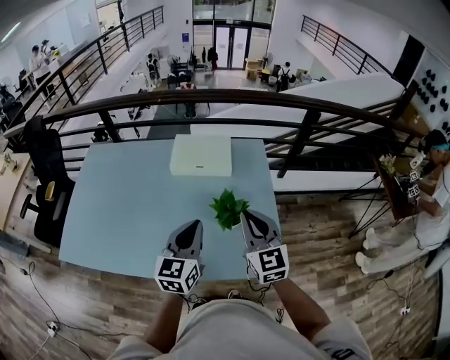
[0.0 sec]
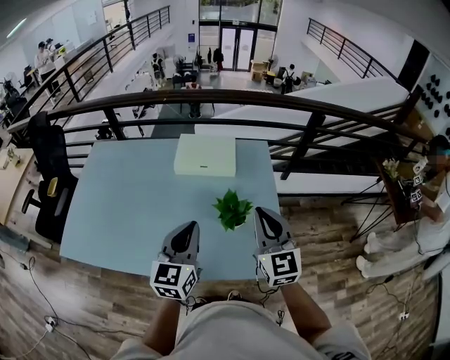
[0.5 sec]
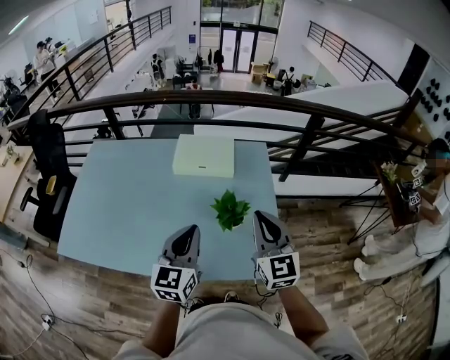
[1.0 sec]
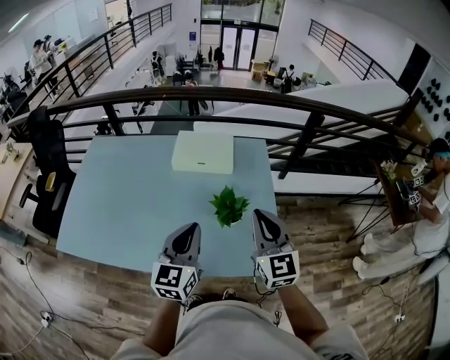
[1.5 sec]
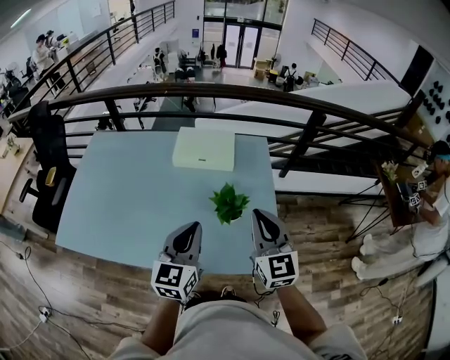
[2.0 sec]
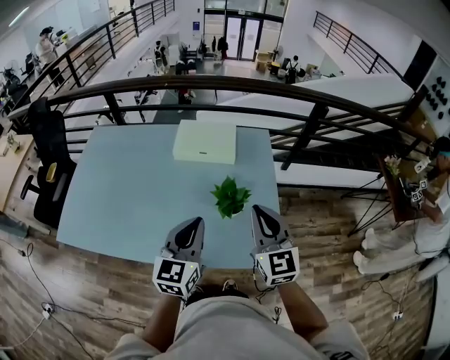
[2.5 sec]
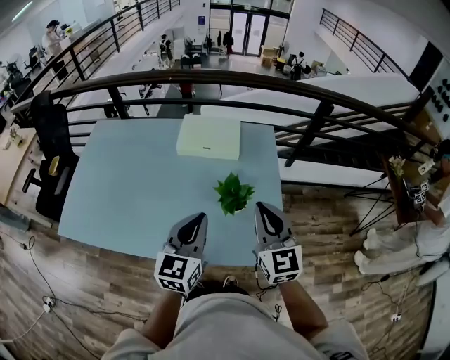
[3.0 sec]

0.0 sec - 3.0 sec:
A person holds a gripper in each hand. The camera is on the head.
0.0 sec - 3.0 sec: The grippers stay close to where they were, moving slightly.

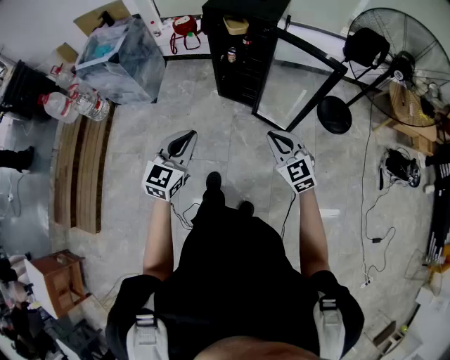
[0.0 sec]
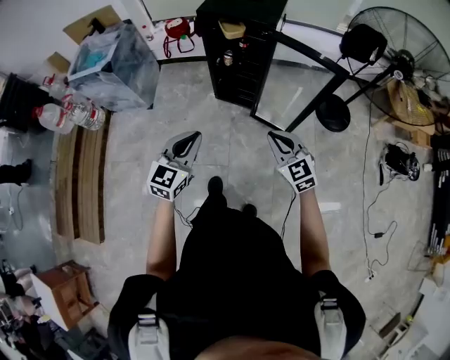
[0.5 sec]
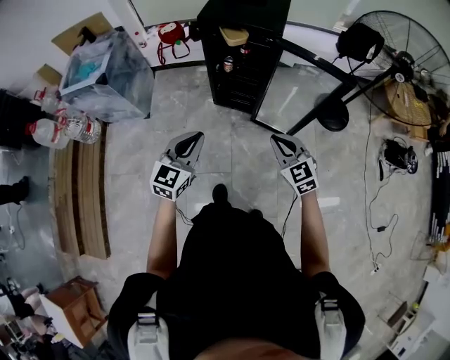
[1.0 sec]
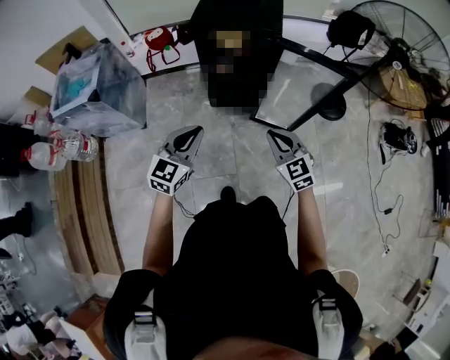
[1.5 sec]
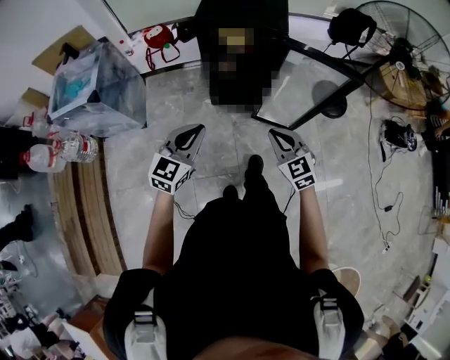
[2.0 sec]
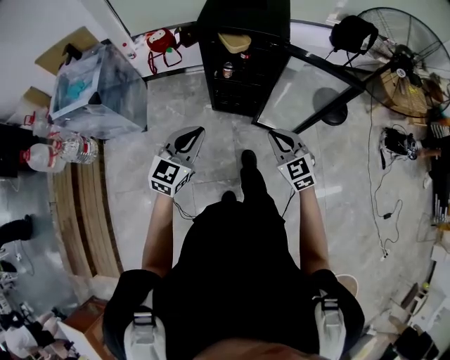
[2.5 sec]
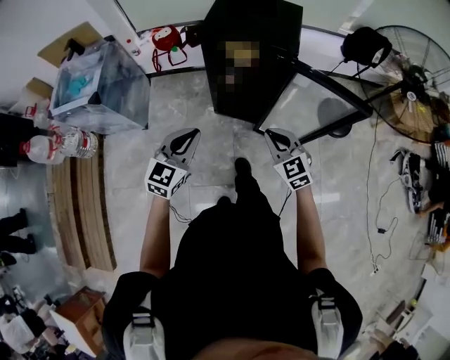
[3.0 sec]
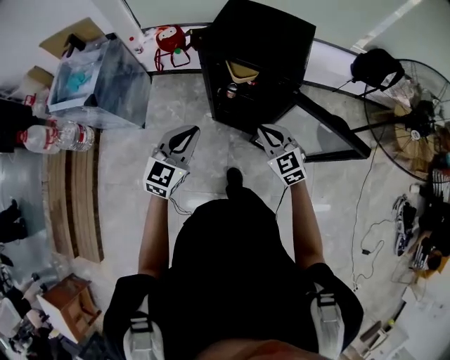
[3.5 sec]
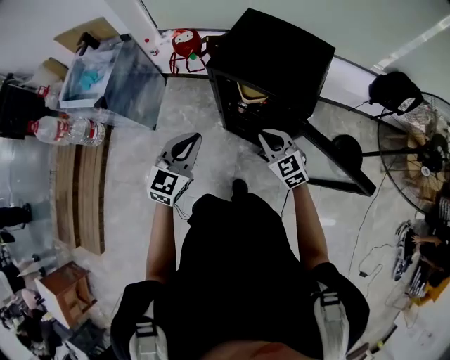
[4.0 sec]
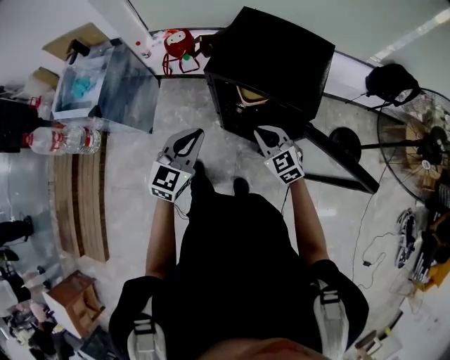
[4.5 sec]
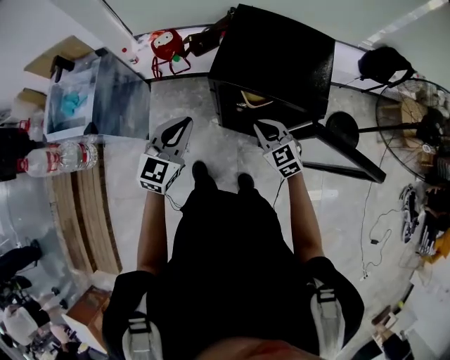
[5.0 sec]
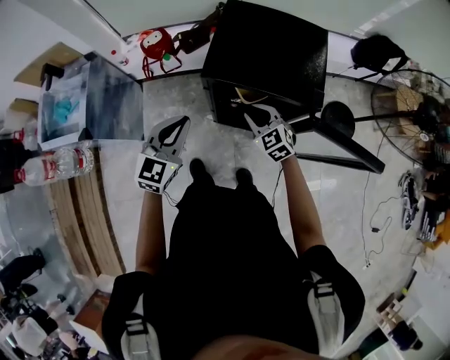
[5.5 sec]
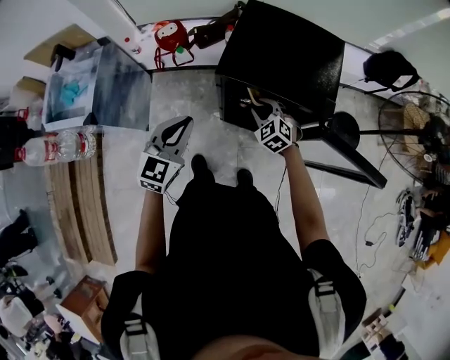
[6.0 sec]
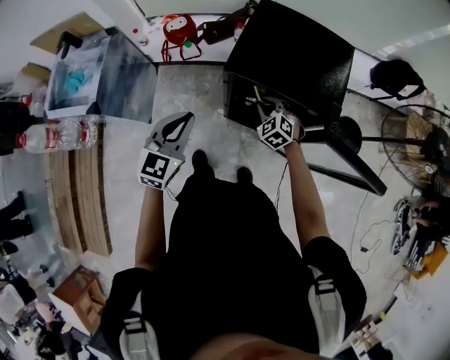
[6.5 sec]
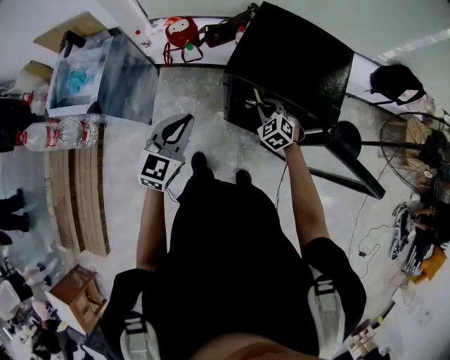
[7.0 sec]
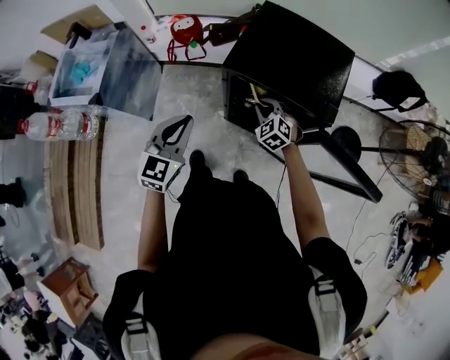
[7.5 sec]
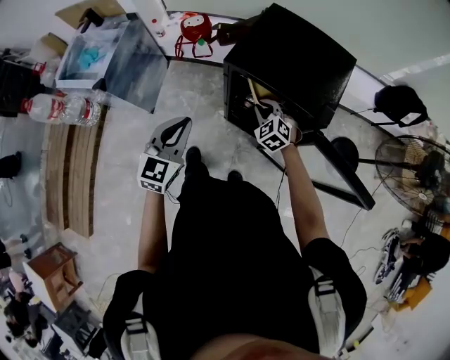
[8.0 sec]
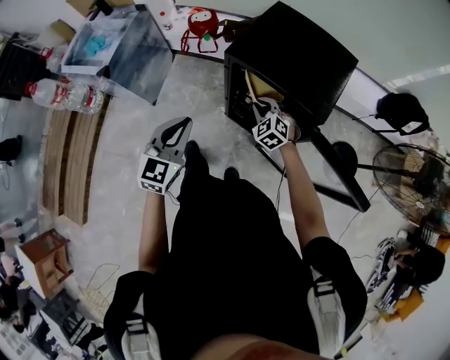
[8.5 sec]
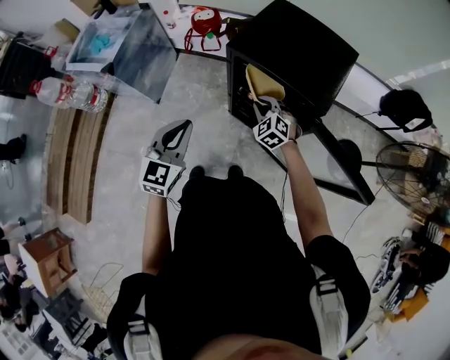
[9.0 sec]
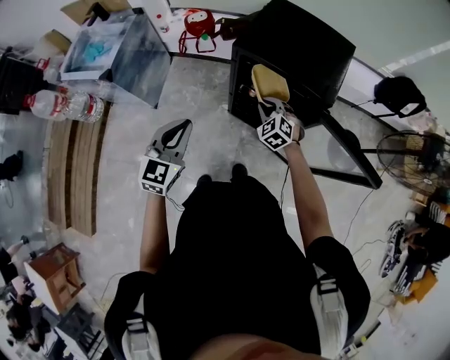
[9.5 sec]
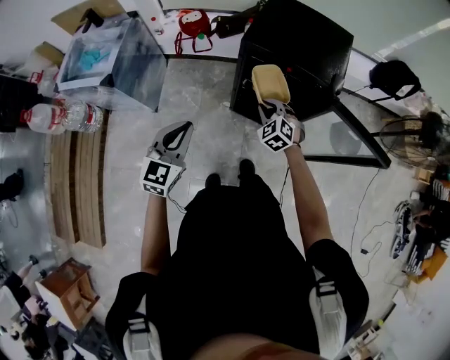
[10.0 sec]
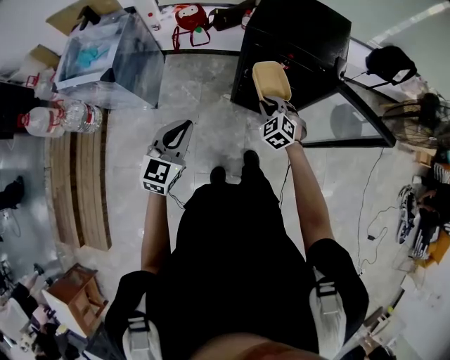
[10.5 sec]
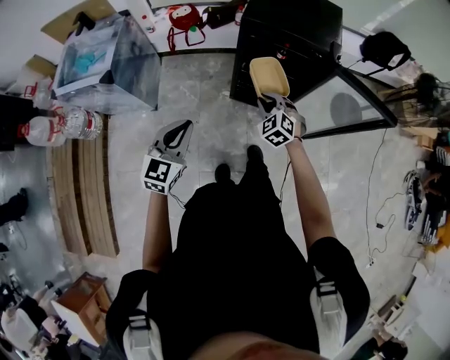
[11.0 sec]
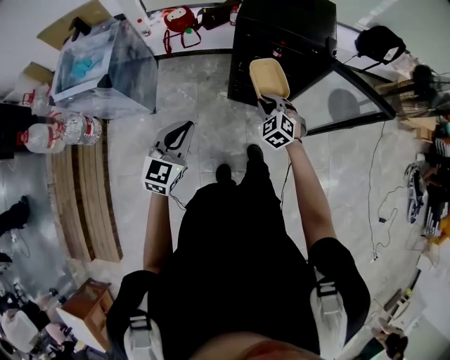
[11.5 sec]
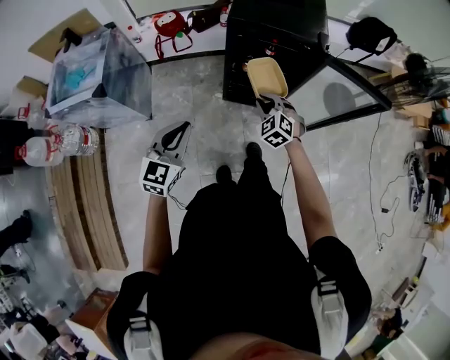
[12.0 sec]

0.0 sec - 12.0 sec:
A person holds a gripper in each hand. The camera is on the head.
0.0 sec - 2.0 sec: The two grippers go about 25 cm forward and to the left.
2.0 sec - 4.0 sec: The two grippers go roughly 30 cm forward. The left gripper changes its angle by approximately 20 degrees. Meanwhile the right gripper swivels roughly 20 degrees.
4.0 sec - 6.0 sec: The left gripper moves forward and to the left, roughly 15 cm, while the right gripper moves forward, downward and to the left, about 20 cm, rotates roughly 20 degrees, and opens up.
6.0 sec - 8.0 sec: The left gripper heads backward, covering some 5 cm.
8.0 sec - 10.0 sec: Both grippers move backward and to the left, approximately 15 cm.
10.0 sec - 12.0 sec: The two grippers go approximately 10 cm backward.

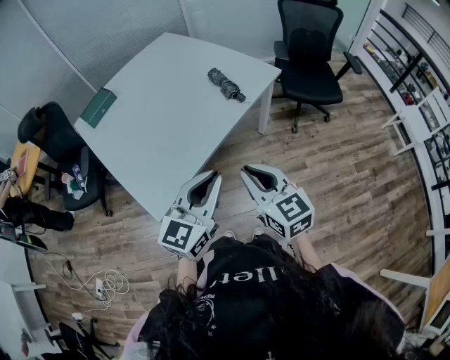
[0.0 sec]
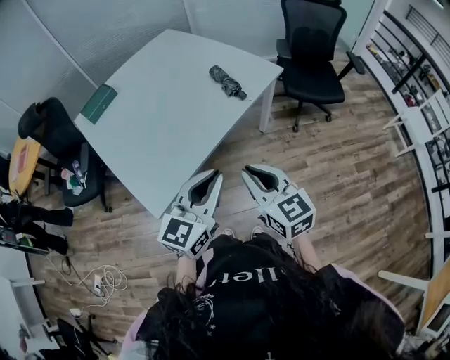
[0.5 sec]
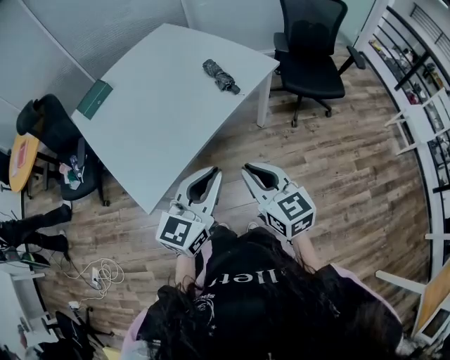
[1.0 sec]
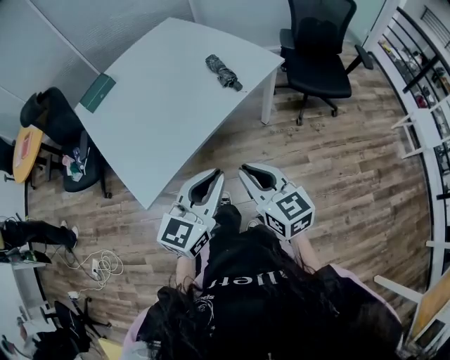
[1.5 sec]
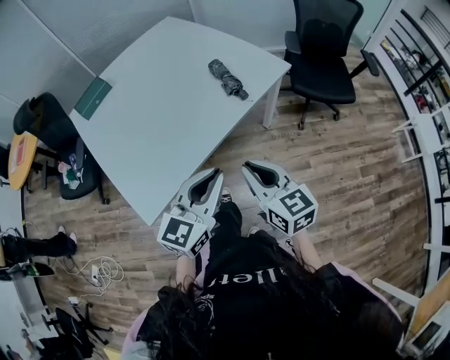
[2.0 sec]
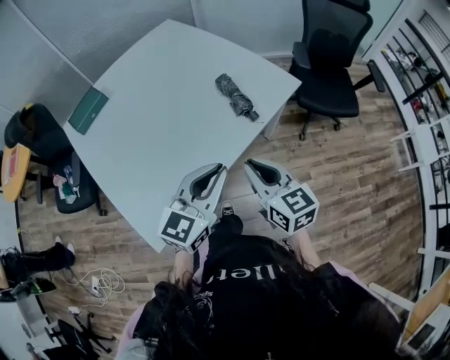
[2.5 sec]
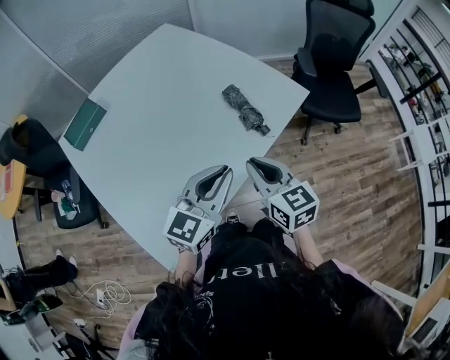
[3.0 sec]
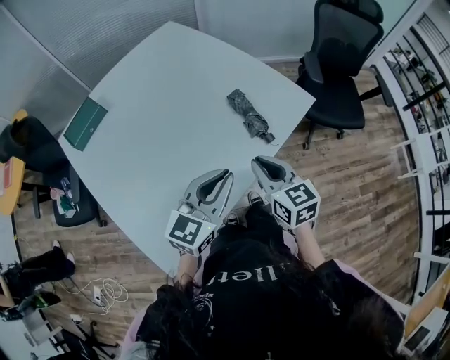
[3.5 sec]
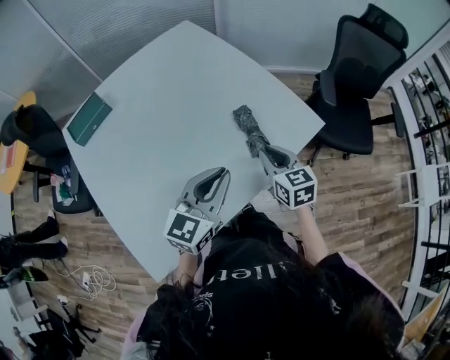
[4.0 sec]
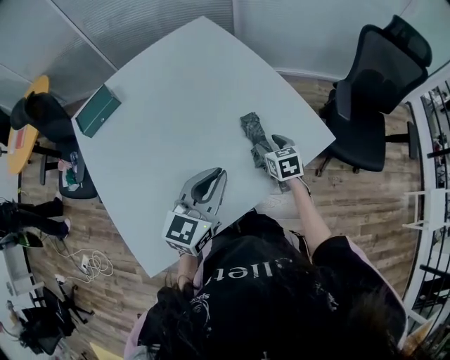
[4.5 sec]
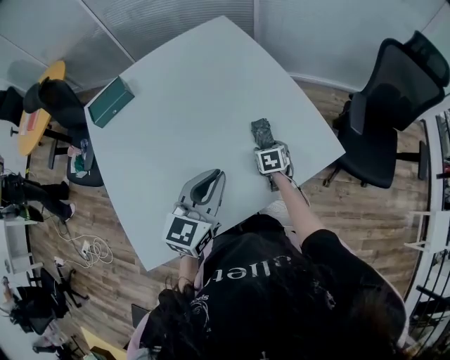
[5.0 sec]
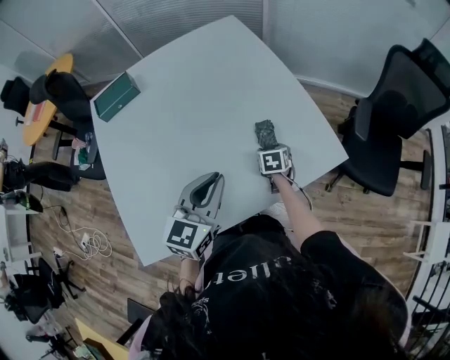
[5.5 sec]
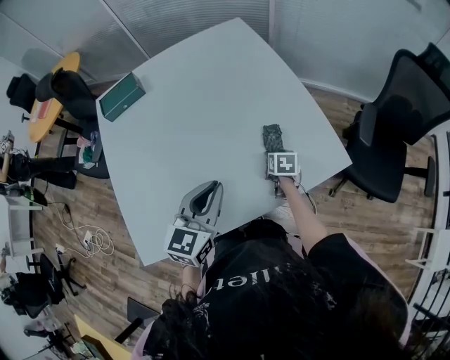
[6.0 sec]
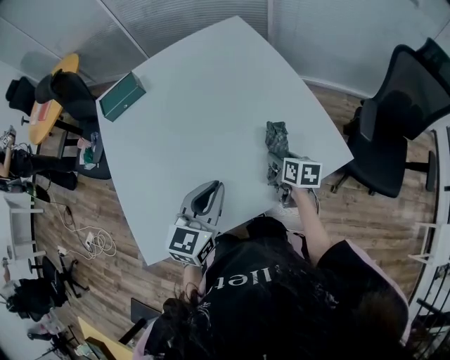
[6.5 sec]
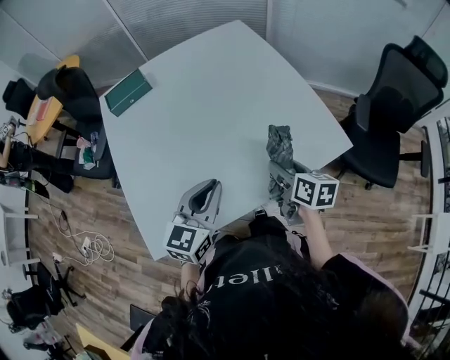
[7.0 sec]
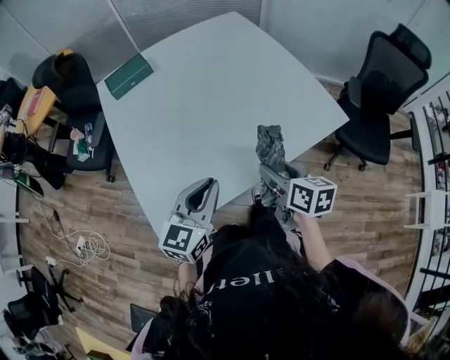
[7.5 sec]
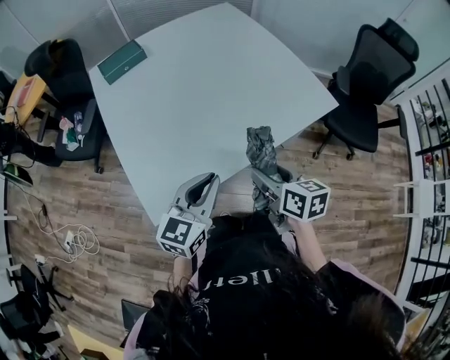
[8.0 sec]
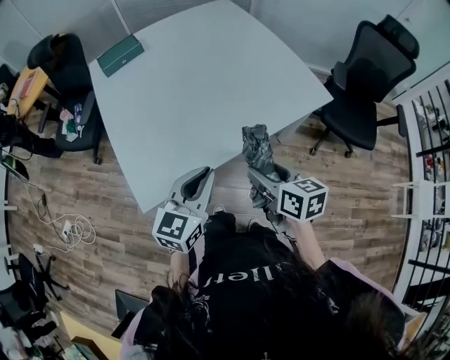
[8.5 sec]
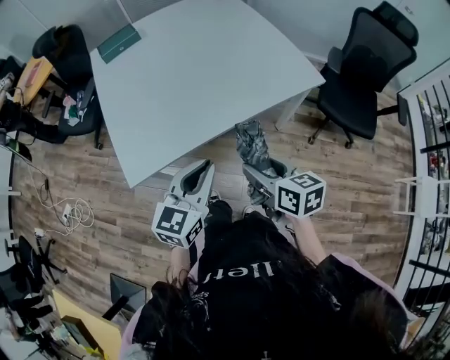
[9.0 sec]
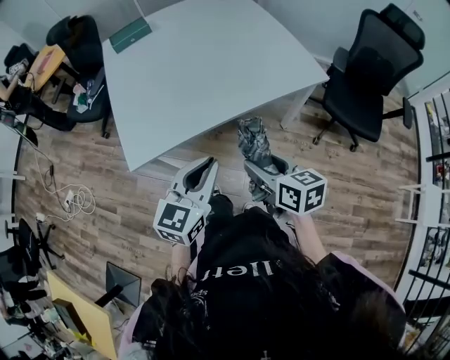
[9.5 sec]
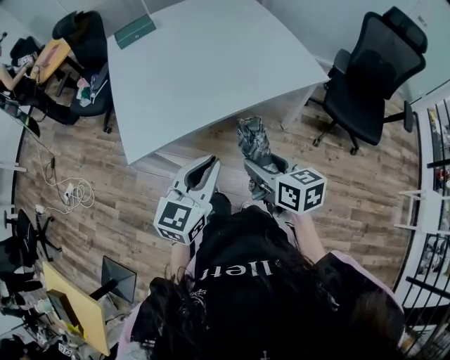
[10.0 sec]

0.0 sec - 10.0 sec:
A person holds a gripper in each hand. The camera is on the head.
0.0 sec - 2.0 sec: The two grippers go about 5 cm forward.
2.0 sec - 4.0 sec: Both grippers travel together forward, some 30 cm.
4.0 sec - 6.0 sec: The left gripper changes its angle by some 30 degrees. The right gripper goes approximately 20 cm downward and forward, turns by roughly 30 degrees, and opens up.
6.0 sec - 8.0 sec: The right gripper shifts roughly 40 cm backward, upward and to the left, and swivels some 30 degrees; the left gripper is displaced backward and to the left by about 25 cm.
8.0 sec - 10.0 sec: The grippers both shift backward and to the right by approximately 20 cm.

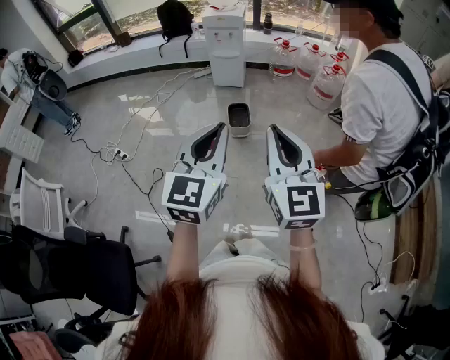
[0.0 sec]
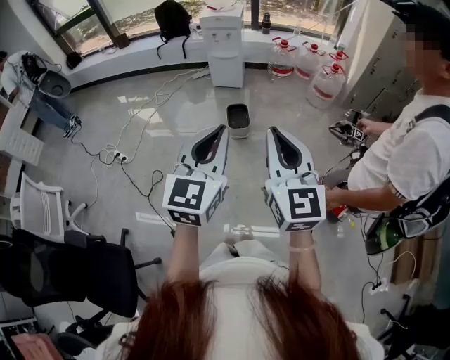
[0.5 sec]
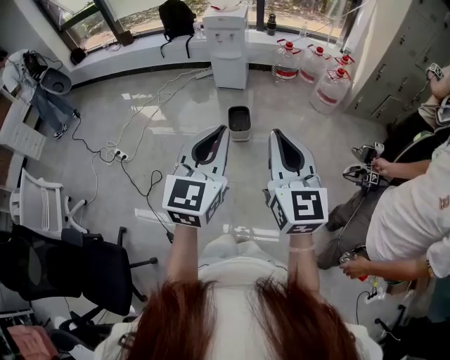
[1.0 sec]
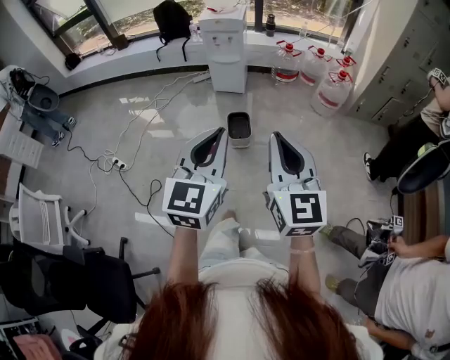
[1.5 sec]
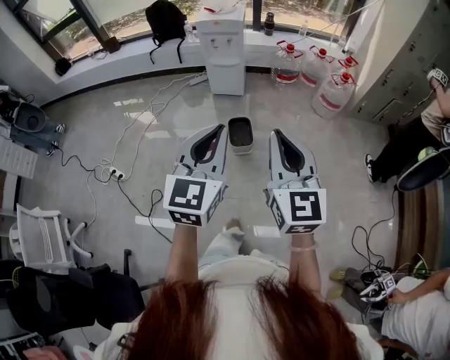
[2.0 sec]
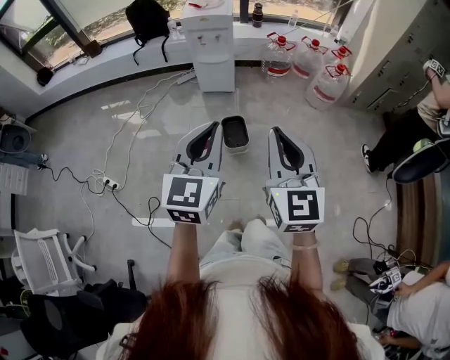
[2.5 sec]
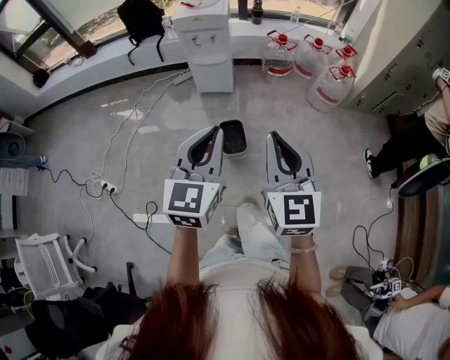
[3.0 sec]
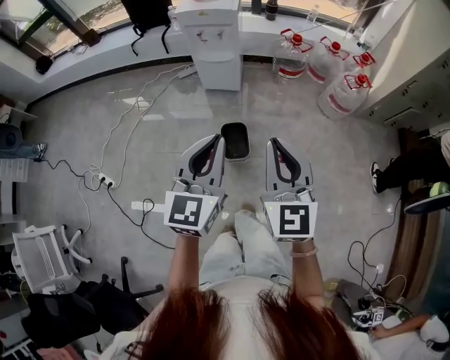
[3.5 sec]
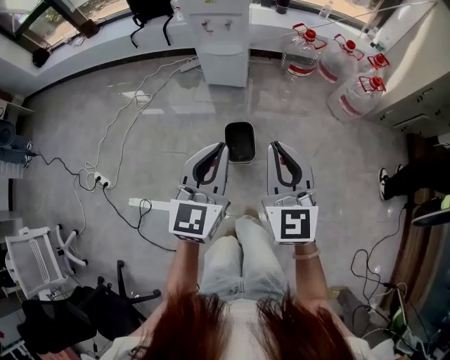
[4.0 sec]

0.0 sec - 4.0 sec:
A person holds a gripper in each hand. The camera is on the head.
0.0 sec - 2.0 sec: Both grippers move forward, some 25 cm.
2.0 sec - 4.0 sec: Both grippers travel together forward and downward, about 35 cm.
